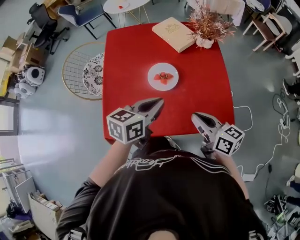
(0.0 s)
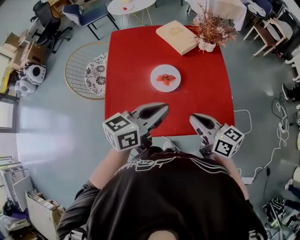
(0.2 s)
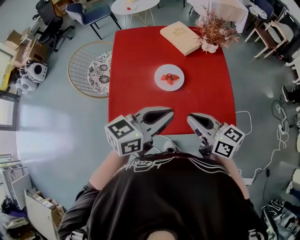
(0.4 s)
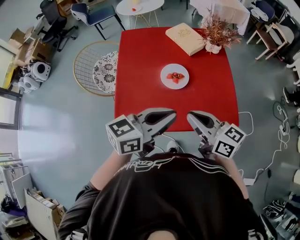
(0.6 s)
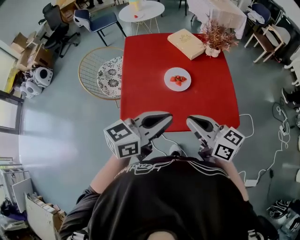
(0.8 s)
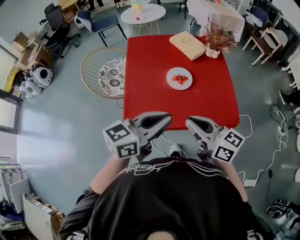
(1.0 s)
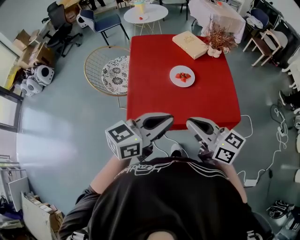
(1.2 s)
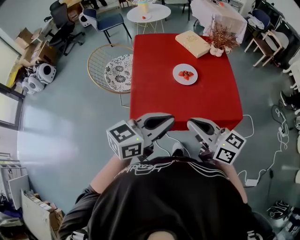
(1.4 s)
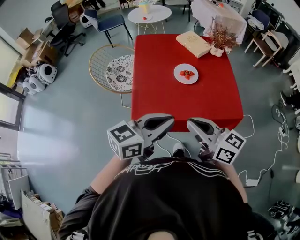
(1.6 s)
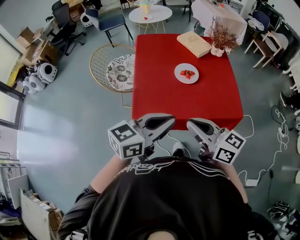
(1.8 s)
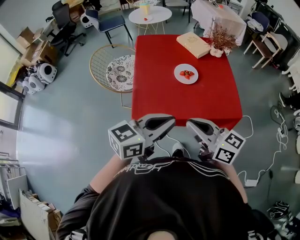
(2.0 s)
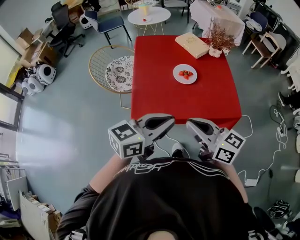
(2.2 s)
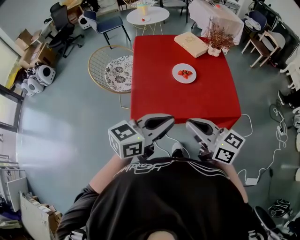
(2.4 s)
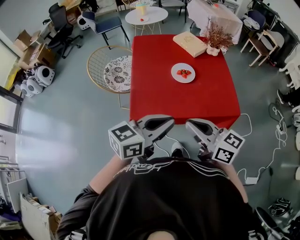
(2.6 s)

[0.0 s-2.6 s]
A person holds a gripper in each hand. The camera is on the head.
0.0 to 1.2 s: The right gripper moves some 20 cm.
1.2 to 2.6 s: The right gripper shifts by about 5 cm.

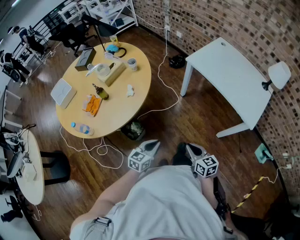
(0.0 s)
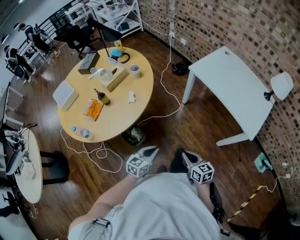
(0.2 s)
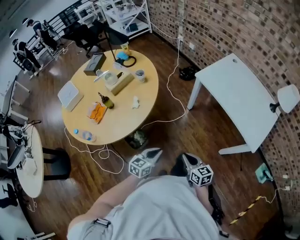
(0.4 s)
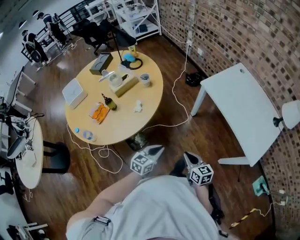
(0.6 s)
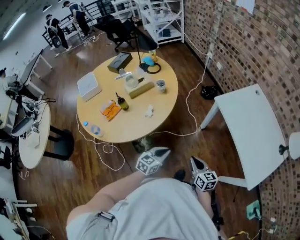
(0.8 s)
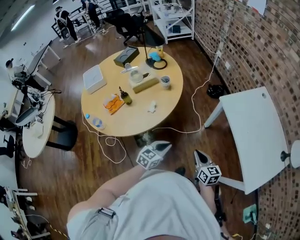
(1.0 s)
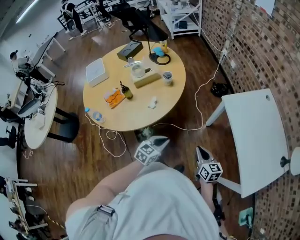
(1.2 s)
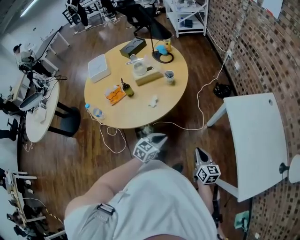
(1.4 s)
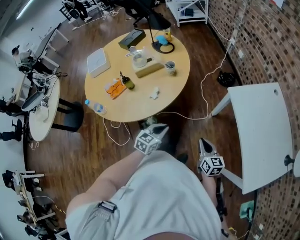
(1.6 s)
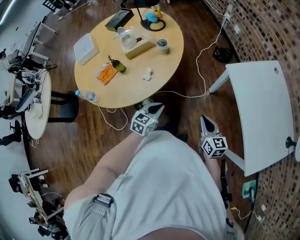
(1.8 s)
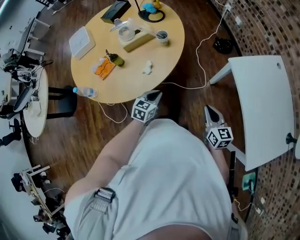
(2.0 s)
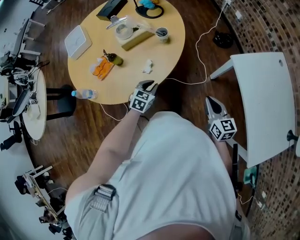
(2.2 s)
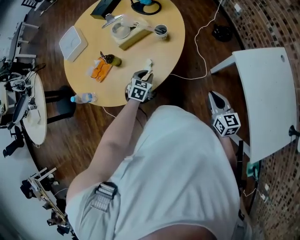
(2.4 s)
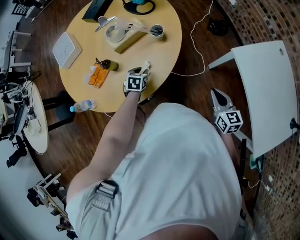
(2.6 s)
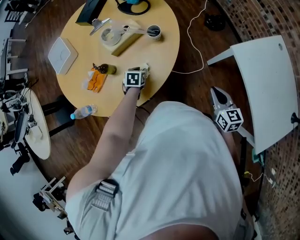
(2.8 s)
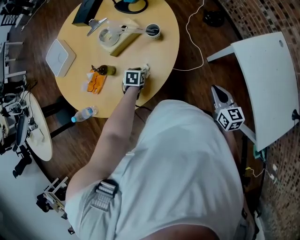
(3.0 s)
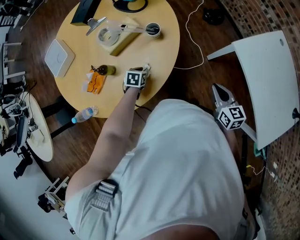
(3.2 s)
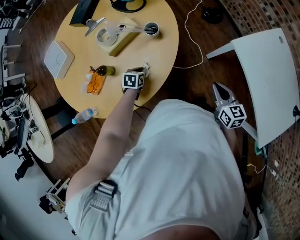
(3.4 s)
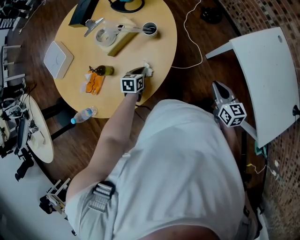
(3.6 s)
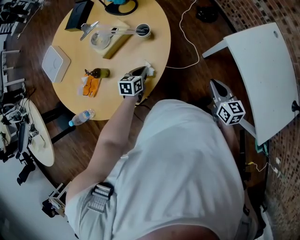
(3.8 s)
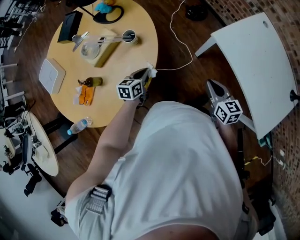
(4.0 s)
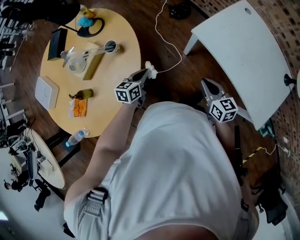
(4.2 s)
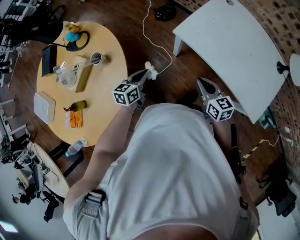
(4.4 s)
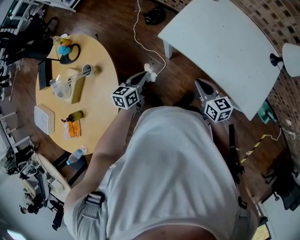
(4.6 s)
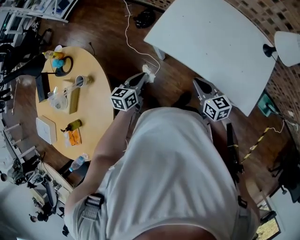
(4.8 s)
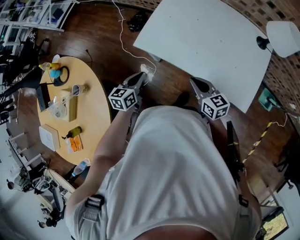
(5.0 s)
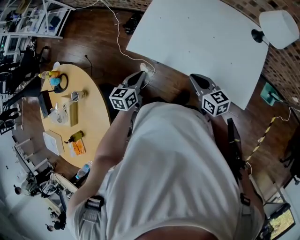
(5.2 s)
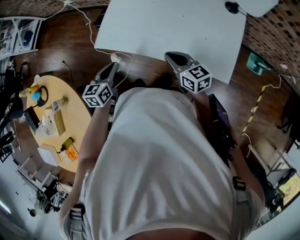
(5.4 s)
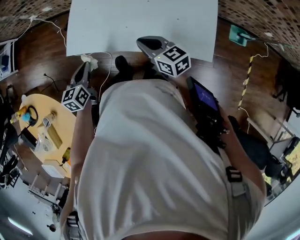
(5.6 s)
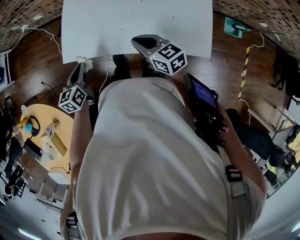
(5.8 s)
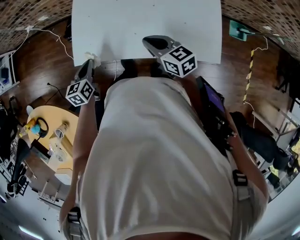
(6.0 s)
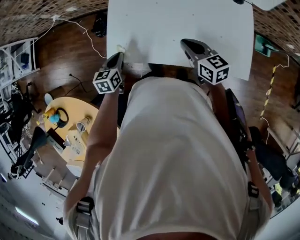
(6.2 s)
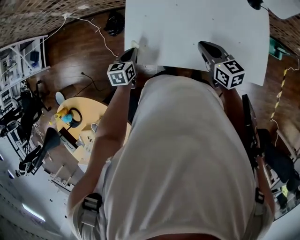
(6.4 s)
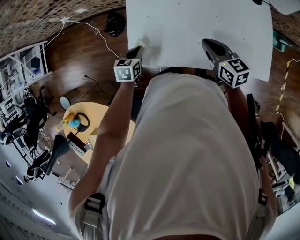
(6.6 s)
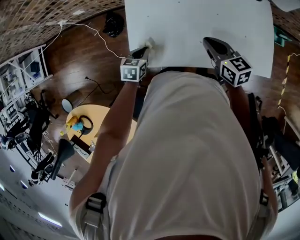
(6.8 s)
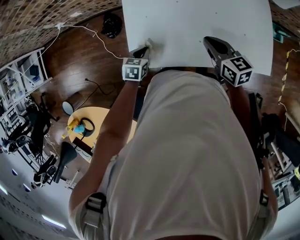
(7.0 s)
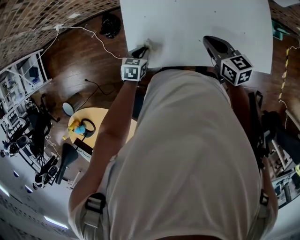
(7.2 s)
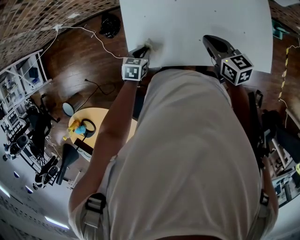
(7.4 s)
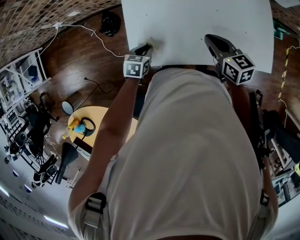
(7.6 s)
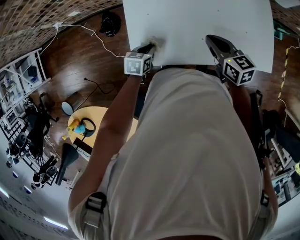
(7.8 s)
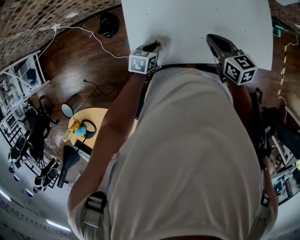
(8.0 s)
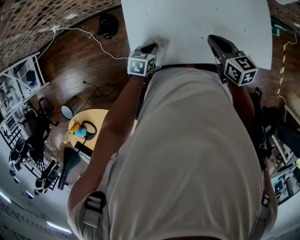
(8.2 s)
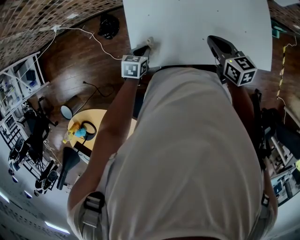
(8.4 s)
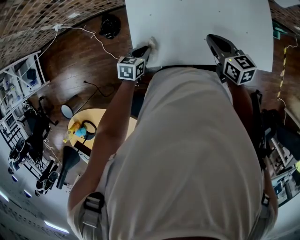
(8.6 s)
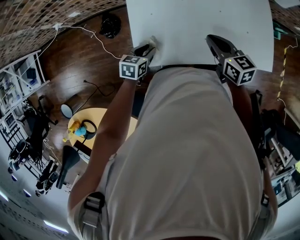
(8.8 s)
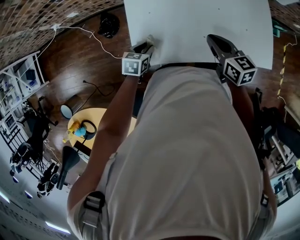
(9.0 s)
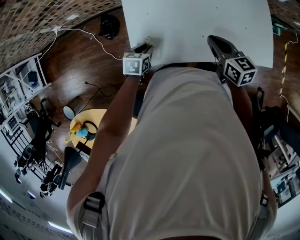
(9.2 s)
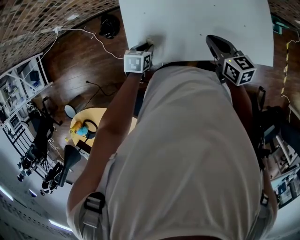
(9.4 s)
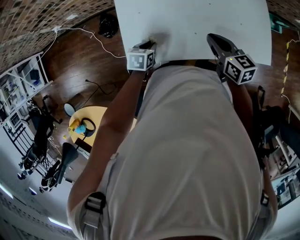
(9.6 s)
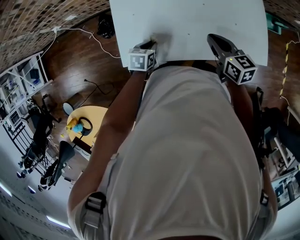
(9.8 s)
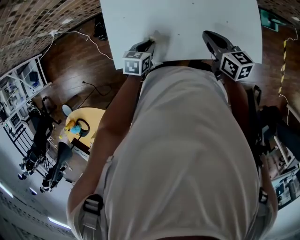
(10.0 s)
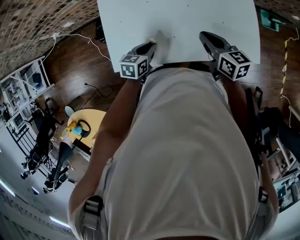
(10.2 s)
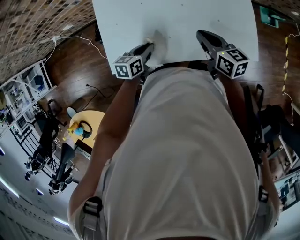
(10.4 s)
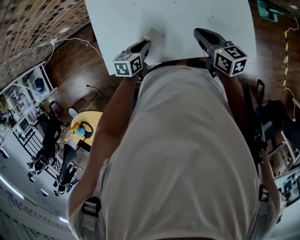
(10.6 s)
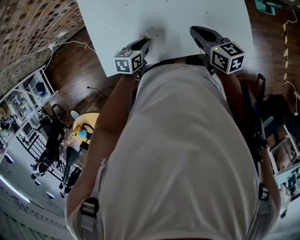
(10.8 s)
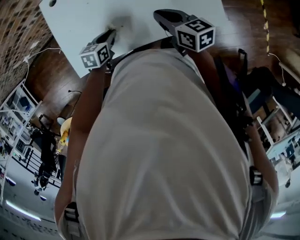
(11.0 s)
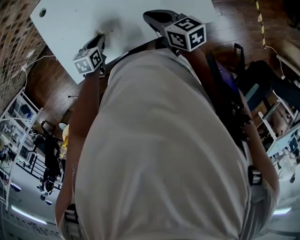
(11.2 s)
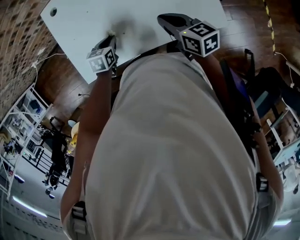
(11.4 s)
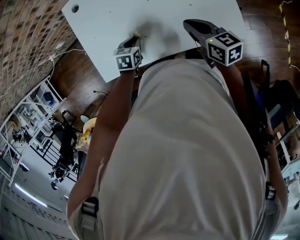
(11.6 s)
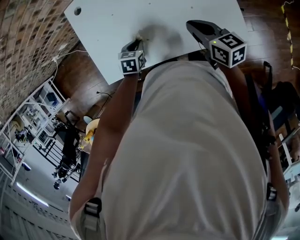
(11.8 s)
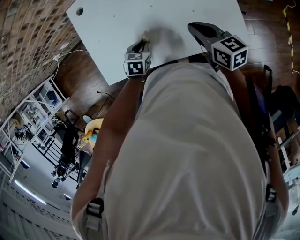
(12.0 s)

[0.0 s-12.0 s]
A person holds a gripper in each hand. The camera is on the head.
0.0 to 1.6 s: Both grippers travel together forward, approximately 20 cm. The left gripper changes its angle by some 20 degrees.
1.6 to 3.0 s: The right gripper goes approximately 15 cm forward; the left gripper is displaced forward, to the left and downward by approximately 35 cm, points its fingers approximately 30 degrees further downward, and opens up.
3.0 to 4.4 s: The right gripper moves to the right, about 15 cm; the left gripper shifts about 30 cm to the right, points its fingers some 40 degrees further upward, and closes its fingers.
4.4 to 6.0 s: The left gripper moves forward and to the right, some 30 cm, and swivels about 30 degrees; the right gripper goes approximately 25 cm to the right and forward, and rotates some 20 degrees.
6.0 to 7.6 s: The left gripper moves downward and forward, approximately 15 cm, and turns by some 30 degrees. The right gripper heads forward, covering some 5 cm.
7.6 to 9.0 s: The grippers make only small movements.
9.0 to 10.4 s: Both grippers move to the right, some 15 cm. The left gripper closes its fingers.
10.4 to 12.0 s: The two grippers go approximately 10 cm to the right. The left gripper changes its angle by approximately 30 degrees.

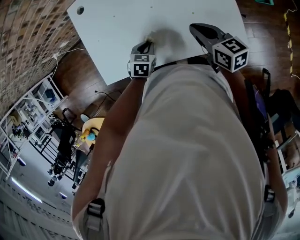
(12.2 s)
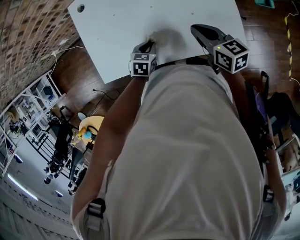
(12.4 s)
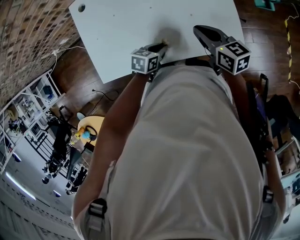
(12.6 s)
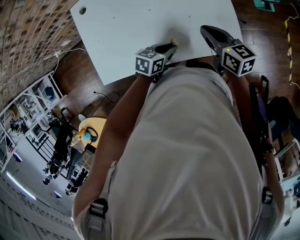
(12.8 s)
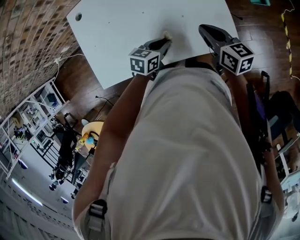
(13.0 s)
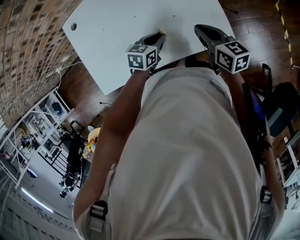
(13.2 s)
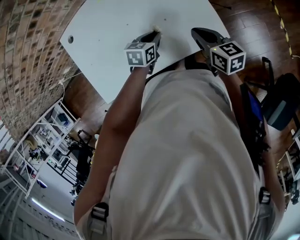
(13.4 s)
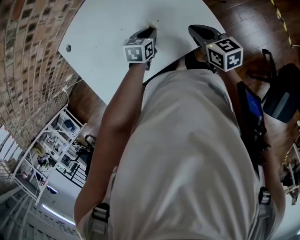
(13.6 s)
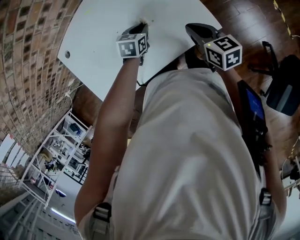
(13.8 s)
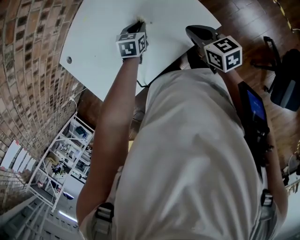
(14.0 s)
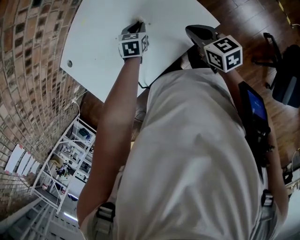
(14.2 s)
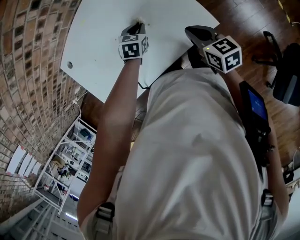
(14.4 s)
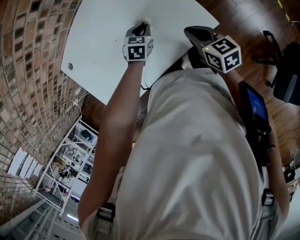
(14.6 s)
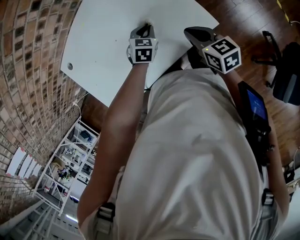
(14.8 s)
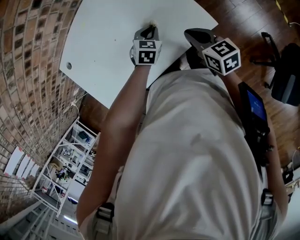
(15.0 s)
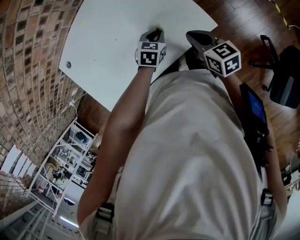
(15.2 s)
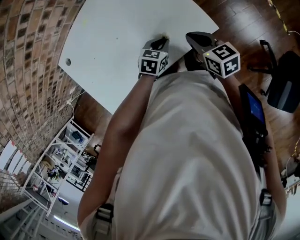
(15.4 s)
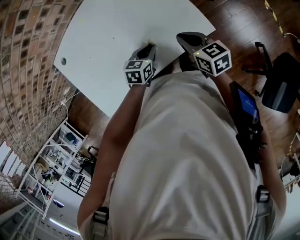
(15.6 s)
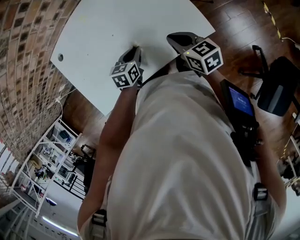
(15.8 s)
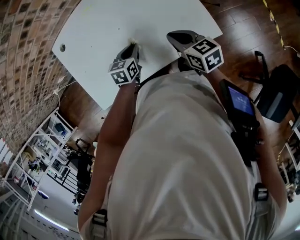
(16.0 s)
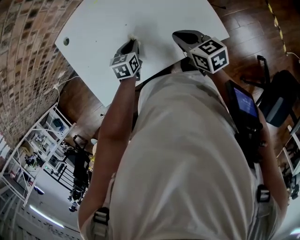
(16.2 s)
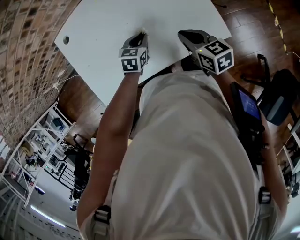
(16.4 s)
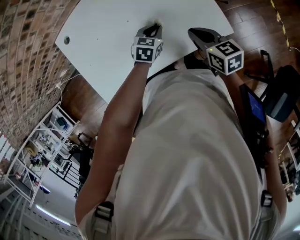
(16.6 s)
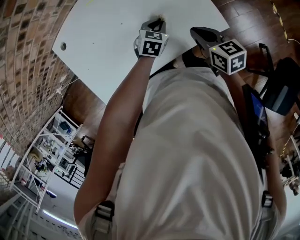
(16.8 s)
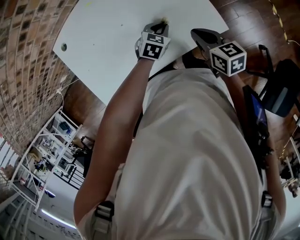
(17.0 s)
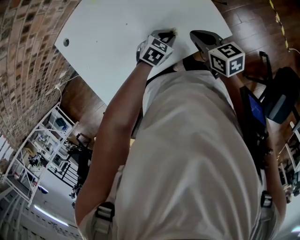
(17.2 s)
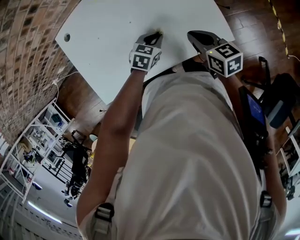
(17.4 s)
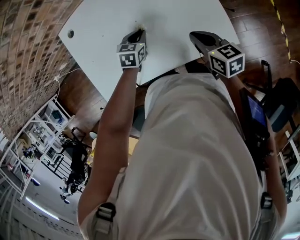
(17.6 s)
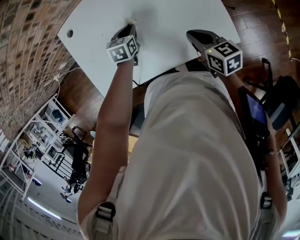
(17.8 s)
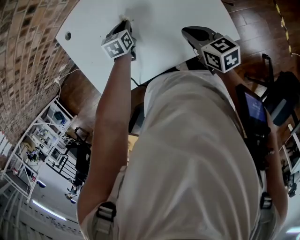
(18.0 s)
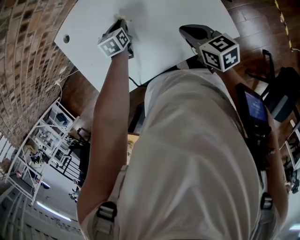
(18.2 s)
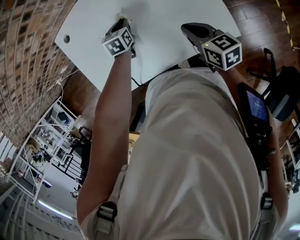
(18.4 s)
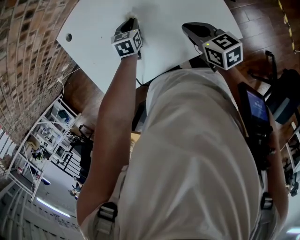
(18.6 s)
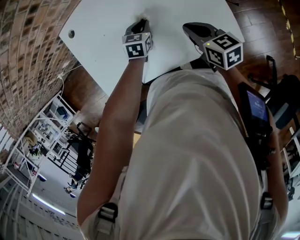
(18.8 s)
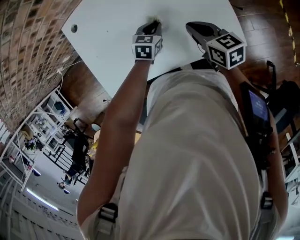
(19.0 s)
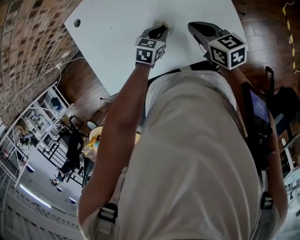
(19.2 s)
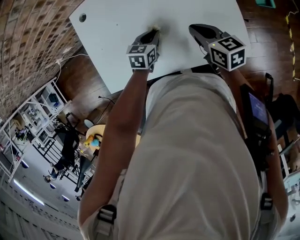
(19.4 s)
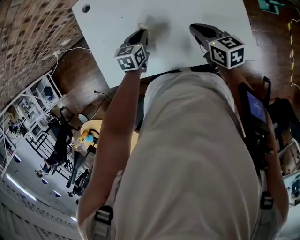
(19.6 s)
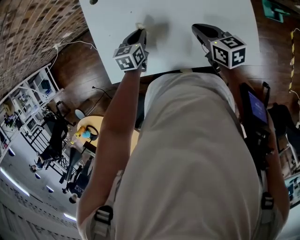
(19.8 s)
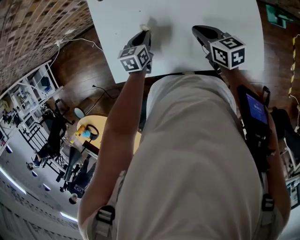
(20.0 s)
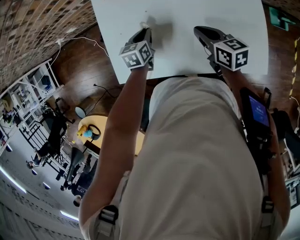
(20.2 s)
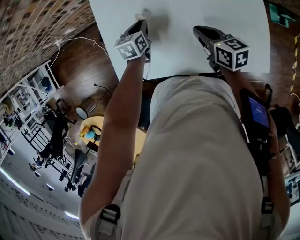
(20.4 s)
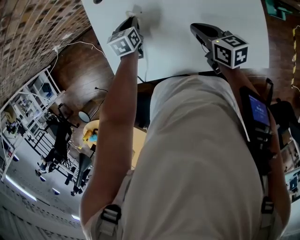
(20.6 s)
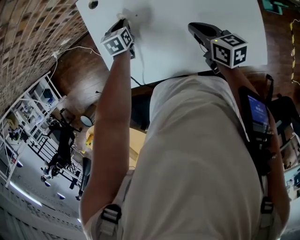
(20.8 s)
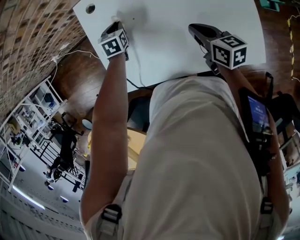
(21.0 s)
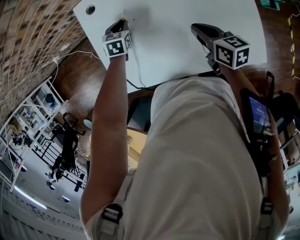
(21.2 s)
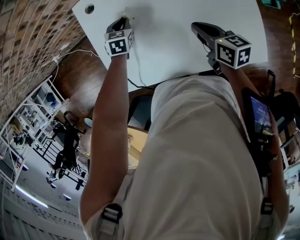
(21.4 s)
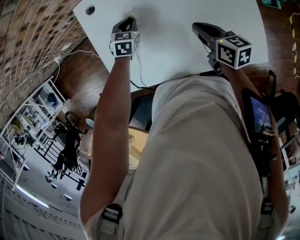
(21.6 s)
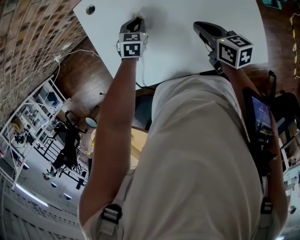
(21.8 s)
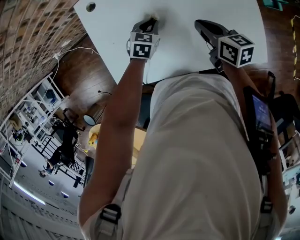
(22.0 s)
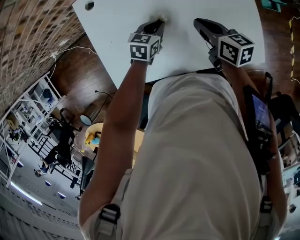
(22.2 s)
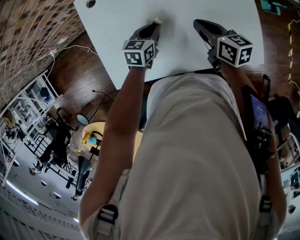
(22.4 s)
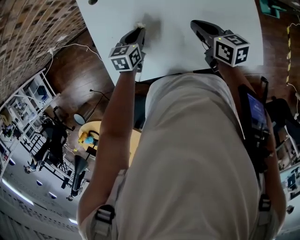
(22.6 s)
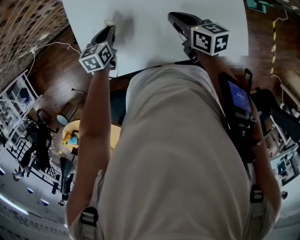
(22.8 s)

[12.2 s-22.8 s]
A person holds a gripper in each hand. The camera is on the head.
12.2 to 13.8 s: The right gripper goes some 15 cm to the right, and turns by about 20 degrees; the left gripper travels to the right and forward by approximately 20 cm.
13.8 to 15.2 s: The left gripper shifts some 5 cm to the right.
15.2 to 16.8 s: The left gripper goes to the left and returns, roughly 20 cm each way.
16.8 to 18.2 s: The left gripper shifts by roughly 20 cm, and rotates some 30 degrees. Meanwhile the right gripper changes place by about 10 cm.
18.2 to 19.8 s: The right gripper is displaced to the left and forward by about 10 cm, while the left gripper heads to the left and backward, covering approximately 15 cm.
19.8 to 21.2 s: The left gripper shifts approximately 15 cm forward, and turns by about 20 degrees.
21.2 to 22.8 s: The left gripper shifts roughly 10 cm backward, moves some 15 cm to the right and comes back, and changes its angle by some 20 degrees.
